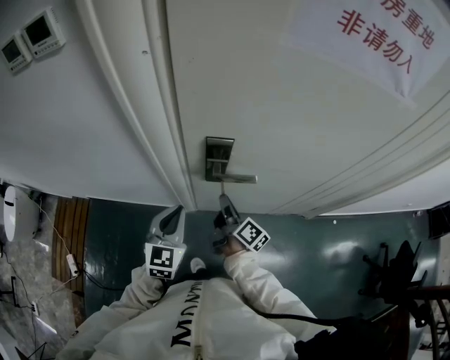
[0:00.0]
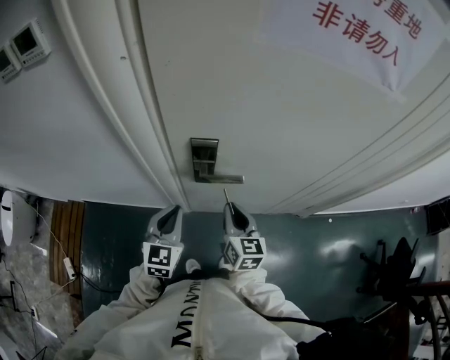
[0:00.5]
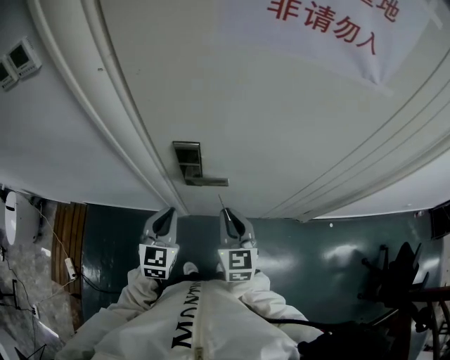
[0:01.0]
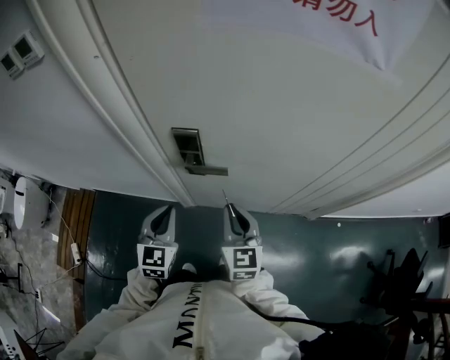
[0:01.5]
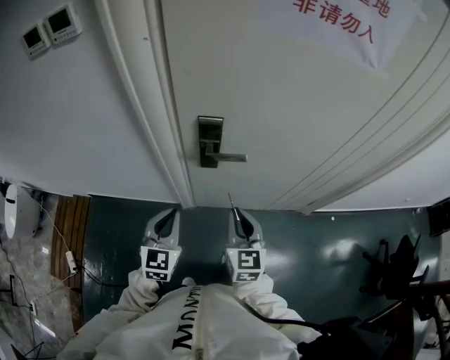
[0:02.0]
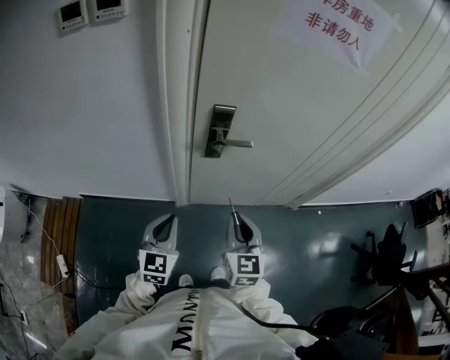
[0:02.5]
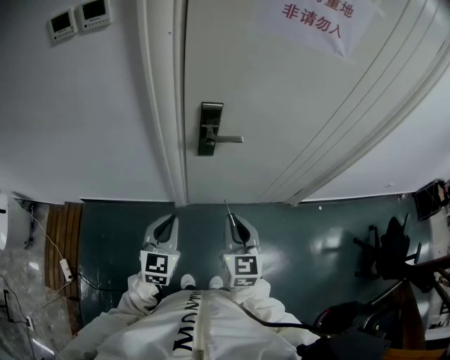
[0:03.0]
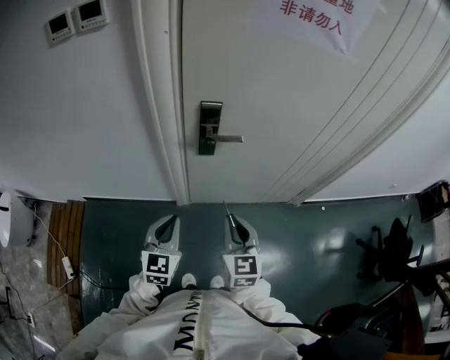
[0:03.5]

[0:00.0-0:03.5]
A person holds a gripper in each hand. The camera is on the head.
0:00.0 to 0:02.0: The right gripper goes some 15 cm backward and upward, and rolls counterclockwise, seen from behind, by about 70 degrees, while the left gripper goes roughly 10 cm backward.
0:02.0 to 0:03.5: Both grippers travel together backward, approximately 10 cm.

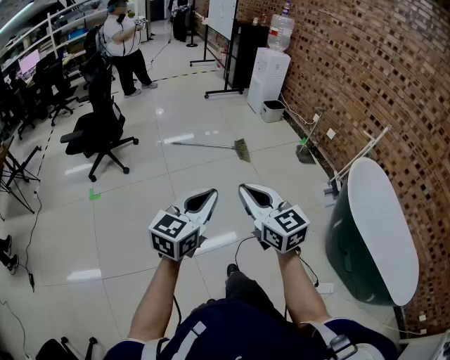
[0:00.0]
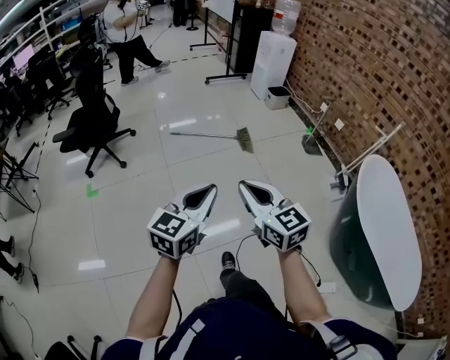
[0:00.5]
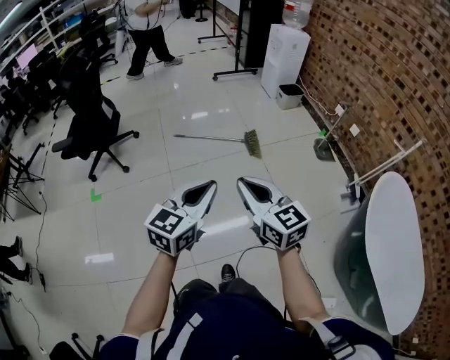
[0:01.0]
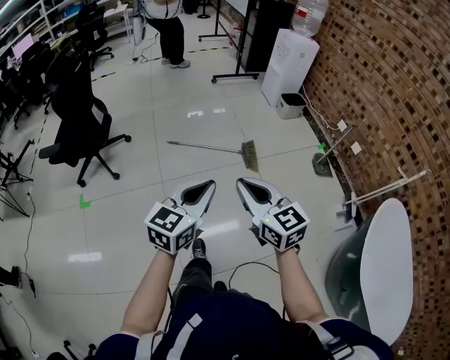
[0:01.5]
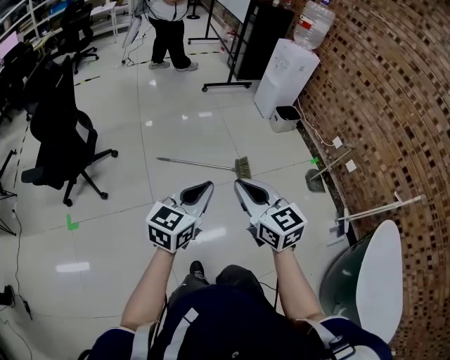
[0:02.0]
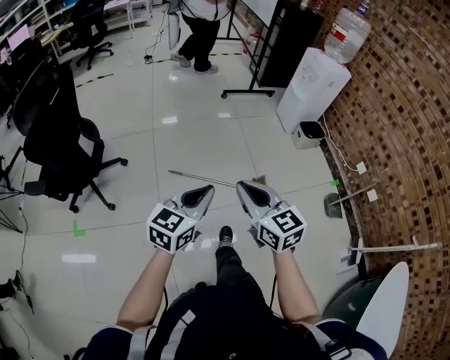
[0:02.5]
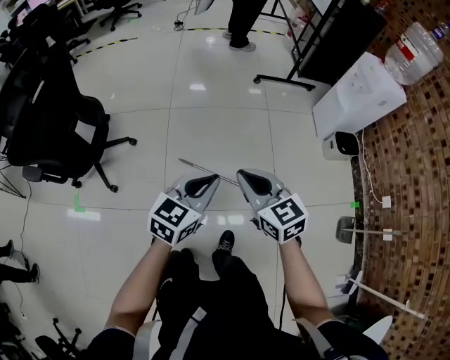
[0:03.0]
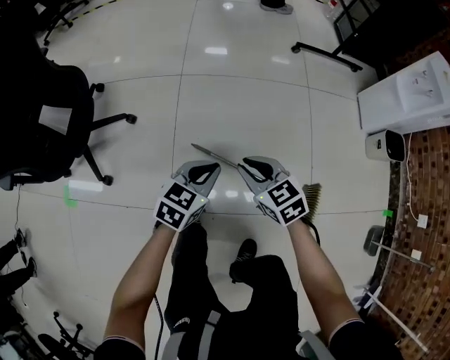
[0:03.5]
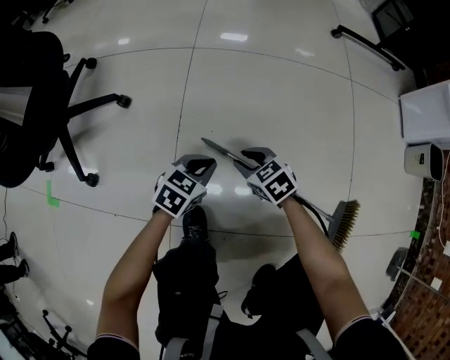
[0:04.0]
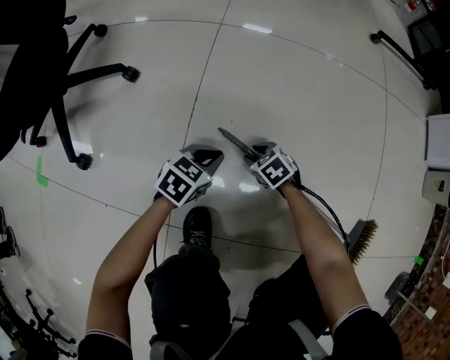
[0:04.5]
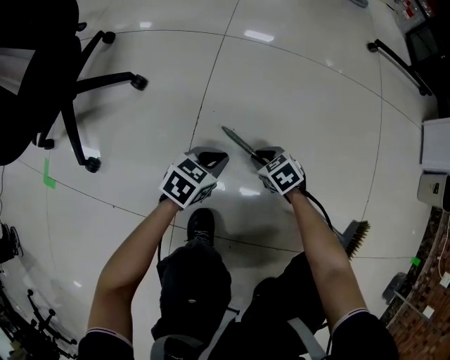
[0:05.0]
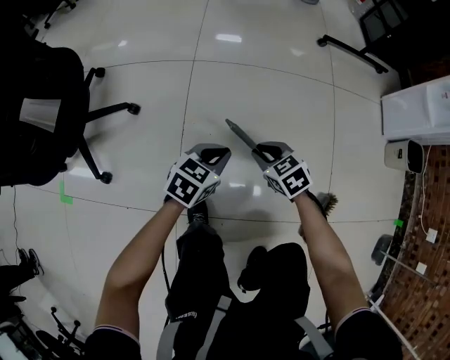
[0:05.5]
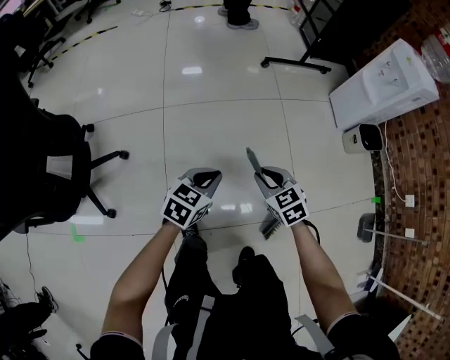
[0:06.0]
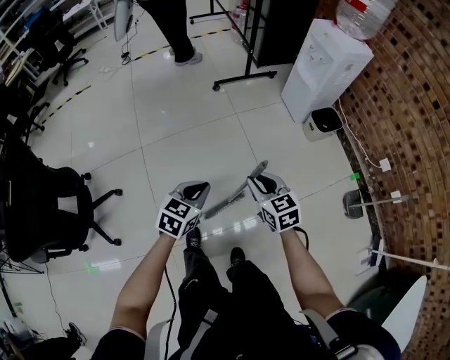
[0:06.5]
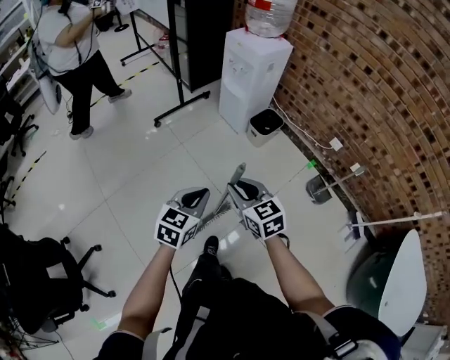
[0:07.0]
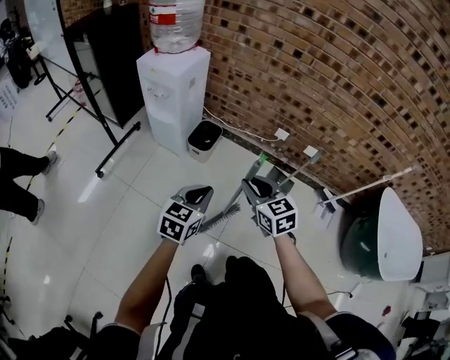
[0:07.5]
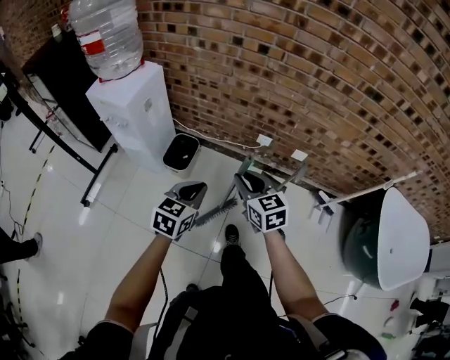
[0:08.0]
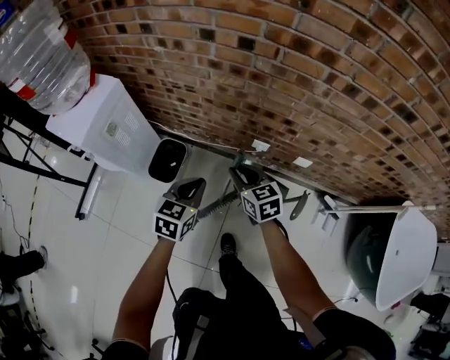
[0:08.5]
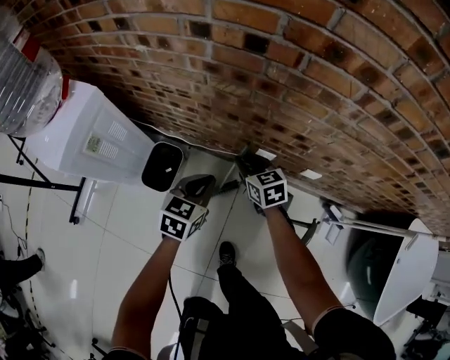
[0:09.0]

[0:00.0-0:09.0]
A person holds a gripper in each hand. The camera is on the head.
0:00.0 to 0:02.0: The pair of grippers is taken forward, approximately 50 cm.
0:02.0 to 0:04.5: The two grippers travel together, about 60 cm. Both grippers travel together downward, roughly 90 cm. The right gripper tilts its fingers approximately 50 degrees downward, and opens up; the left gripper angles its fingers downward, by about 40 degrees.
0:04.5 to 0:07.0: The two grippers travel together, some 50 cm. The grippers both shift upward by some 80 cm. The left gripper turns by about 40 degrees, while the right gripper angles its fingers upward, by about 30 degrees, and closes.
0:07.0 to 0:09.0: The two grippers travel together, roughly 80 cm. The right gripper changes its angle by some 40 degrees. The left gripper changes its angle by about 30 degrees.

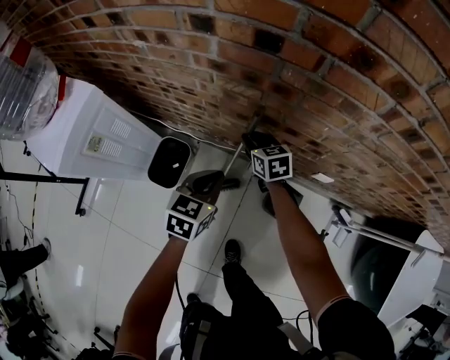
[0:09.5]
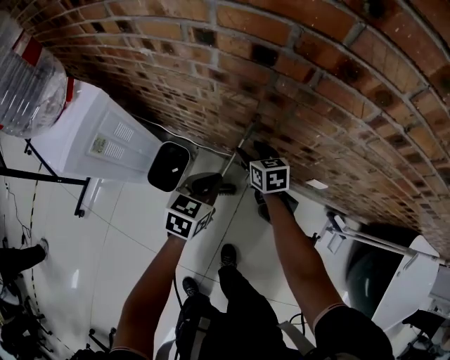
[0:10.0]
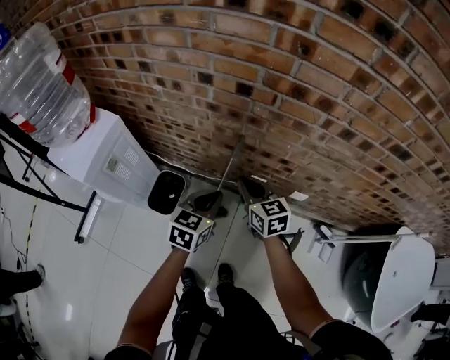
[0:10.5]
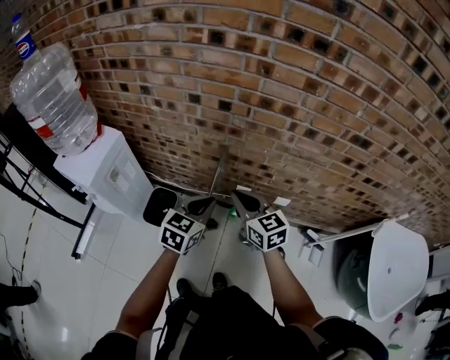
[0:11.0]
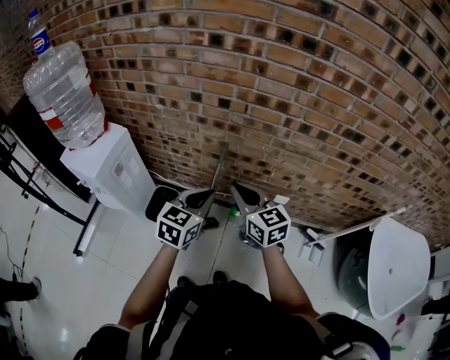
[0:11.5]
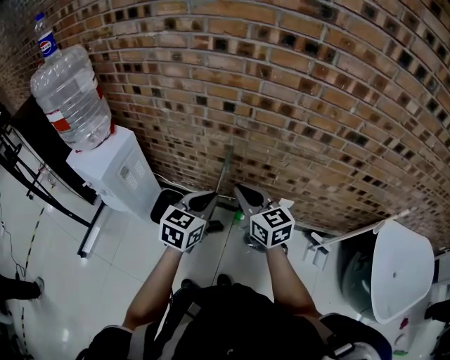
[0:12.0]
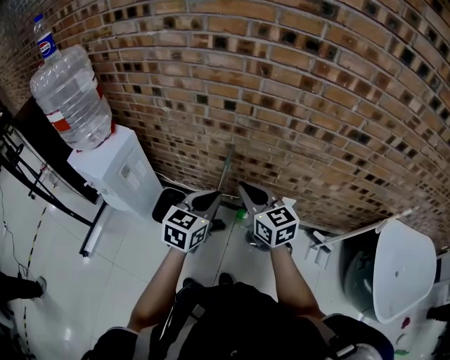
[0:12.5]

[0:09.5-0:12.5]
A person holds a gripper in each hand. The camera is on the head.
0:09.5 to 0:11.0: The right gripper heads upward and backward, covering some 35 cm, changes its angle by some 20 degrees, and opens, then closes once more. The left gripper heads upward and backward, covering roughly 20 cm.
0:11.0 to 0:12.5: Both grippers travel together upward, roughly 5 cm.

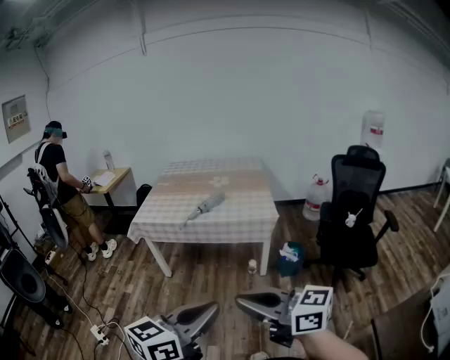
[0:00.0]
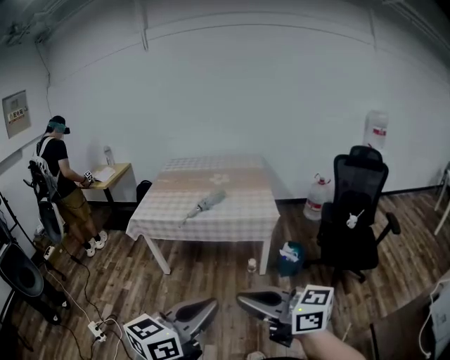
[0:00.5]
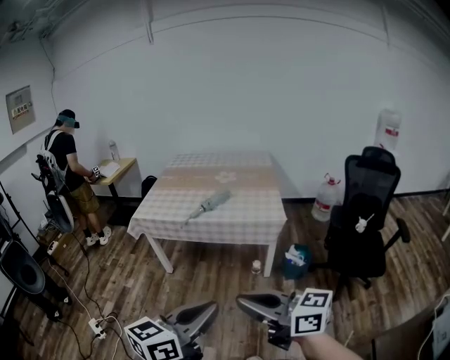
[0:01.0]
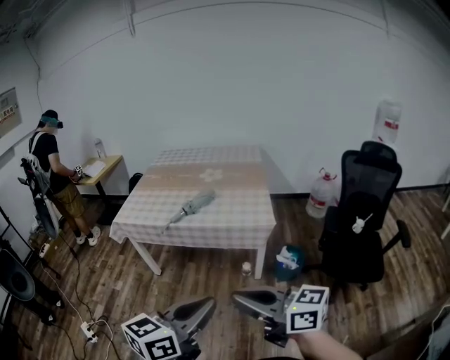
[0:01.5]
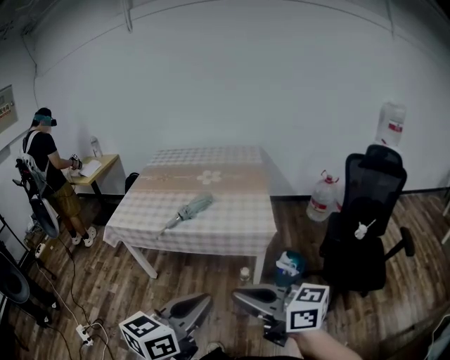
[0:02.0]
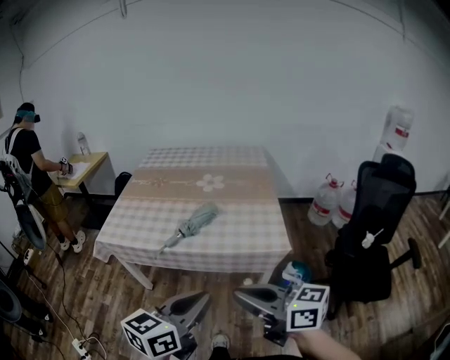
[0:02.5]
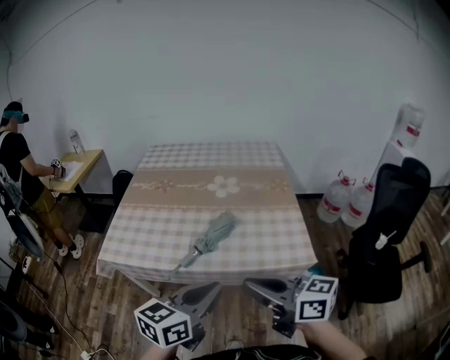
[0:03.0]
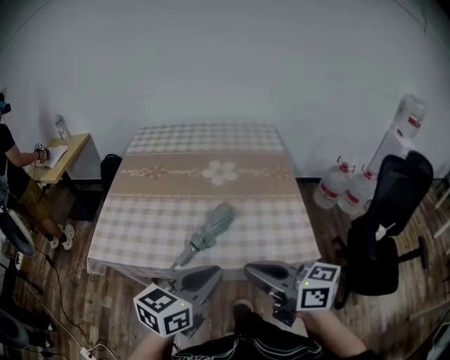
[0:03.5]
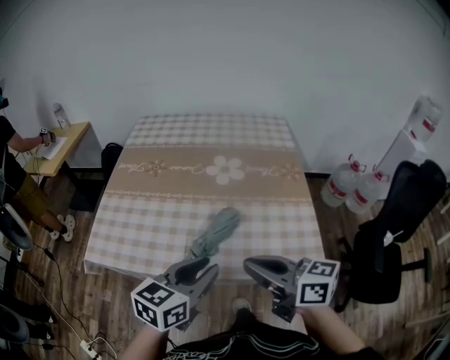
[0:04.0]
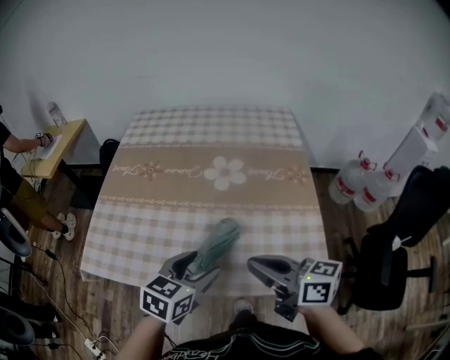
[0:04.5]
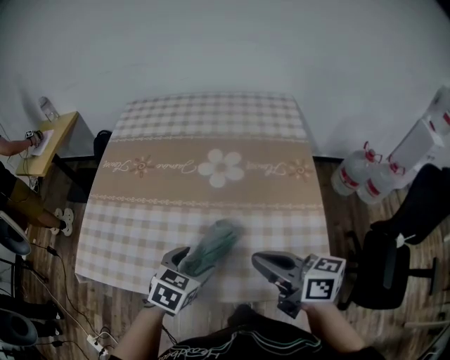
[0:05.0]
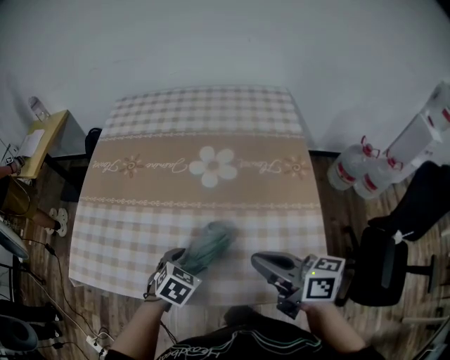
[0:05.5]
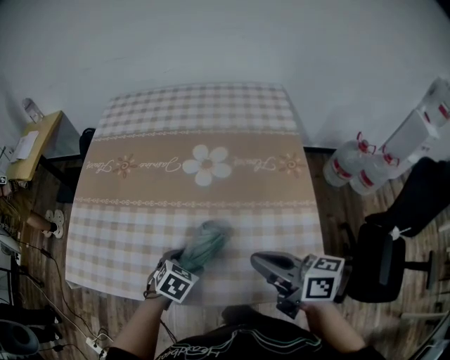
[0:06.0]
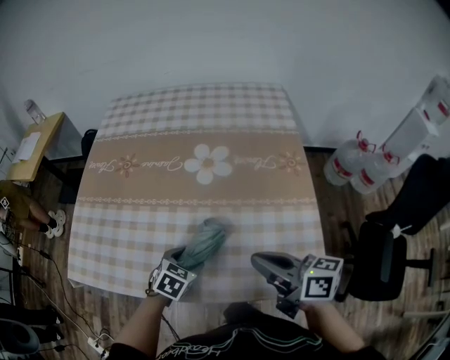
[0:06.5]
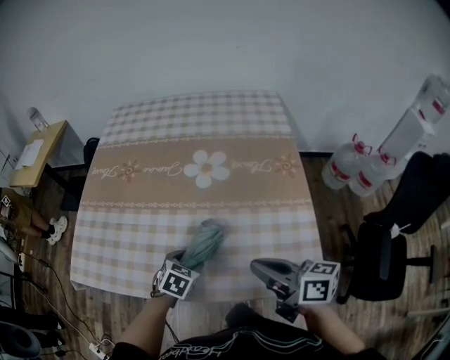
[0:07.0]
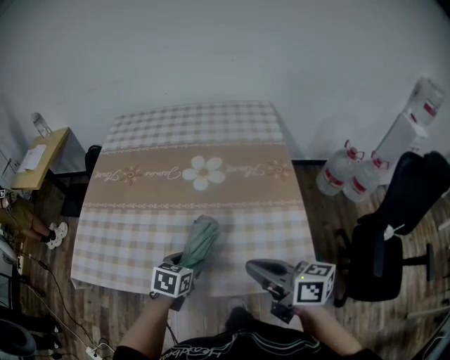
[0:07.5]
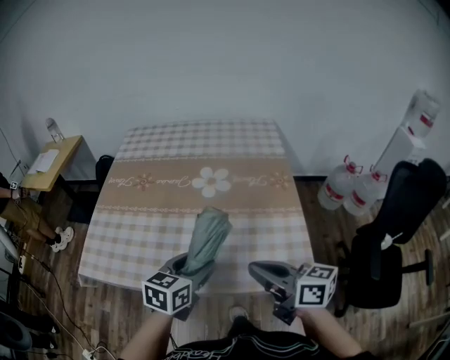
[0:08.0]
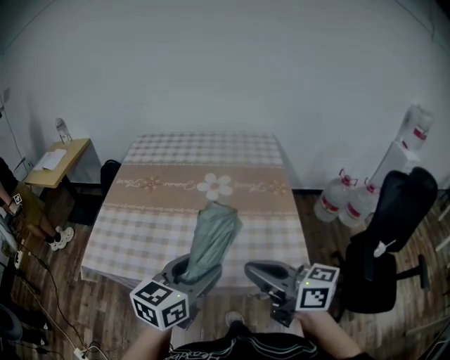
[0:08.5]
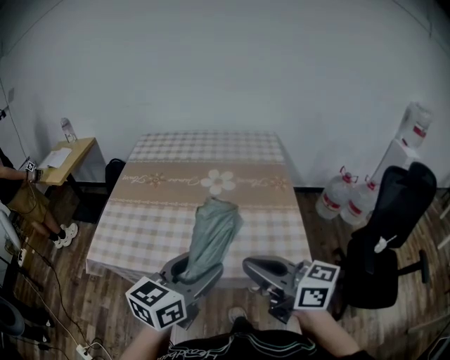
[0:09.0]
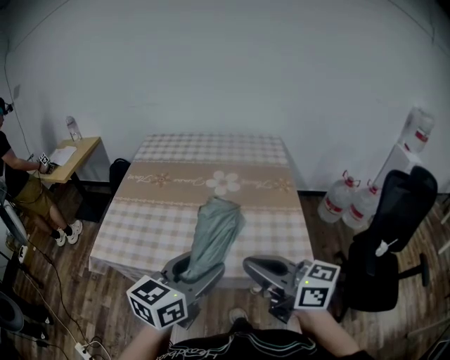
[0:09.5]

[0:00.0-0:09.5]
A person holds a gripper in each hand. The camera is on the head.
0:00.0 to 0:02.0: The two grippers go roughly 25 cm forward and to the right.
0:02.0 to 0:04.0: Both grippers are carried forward, some 50 cm.
0:04.0 to 0:05.5: The right gripper moves forward, to the right and downward, approximately 20 cm, while the left gripper goes about 25 cm downward and forward, tilts its fingers roughly 40 degrees downward, and opens.
0:05.5 to 0:07.5: The right gripper travels backward by roughly 5 cm. Meanwhile the left gripper rotates approximately 20 degrees.
0:07.5 to 0:09.5: The right gripper travels upward, backward and to the left by approximately 20 cm, and turns by some 20 degrees, while the left gripper heads upward and backward, covering roughly 35 cm, and angles its fingers upward, by about 40 degrees.

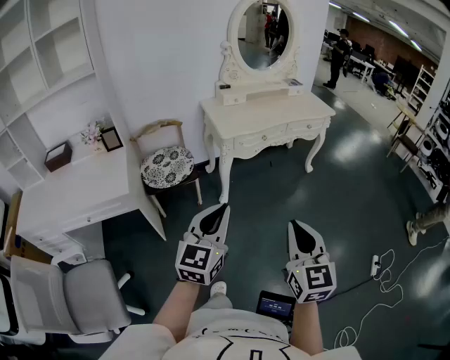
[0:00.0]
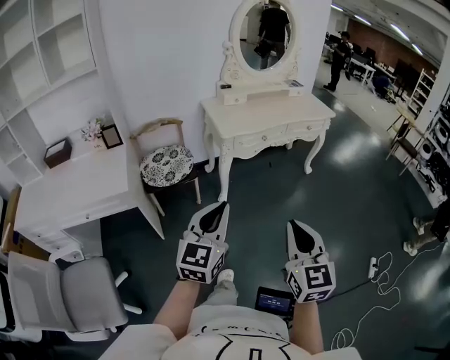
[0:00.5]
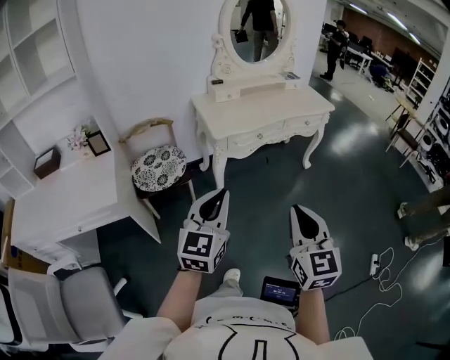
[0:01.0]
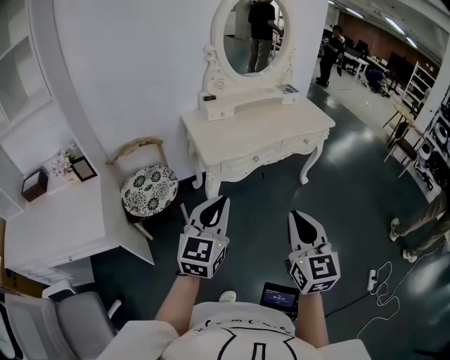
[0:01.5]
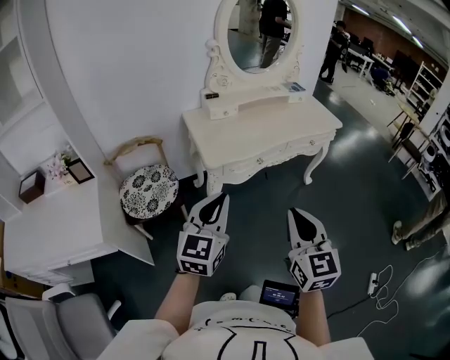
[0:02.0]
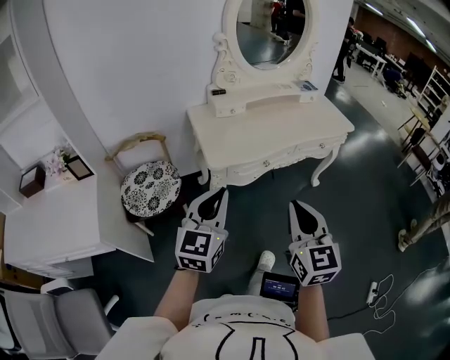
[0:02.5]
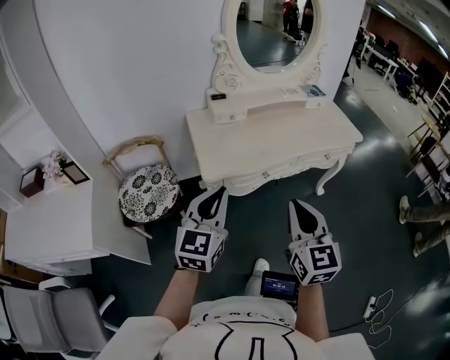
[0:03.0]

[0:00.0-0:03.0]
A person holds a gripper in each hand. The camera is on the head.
0:00.0 to 0:01.5: The grippers both shift forward by some 20 cm.
0:01.5 to 0:03.0: The grippers both shift forward by some 20 cm.
